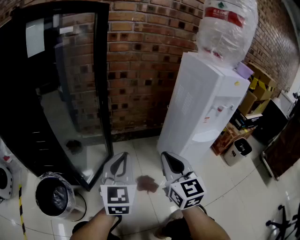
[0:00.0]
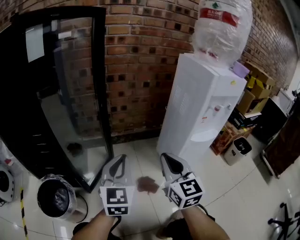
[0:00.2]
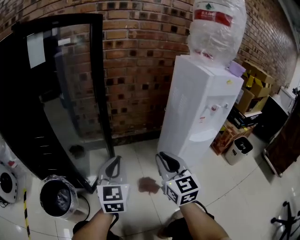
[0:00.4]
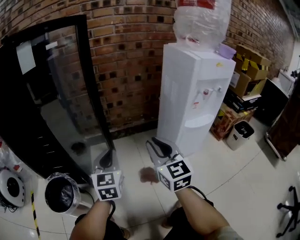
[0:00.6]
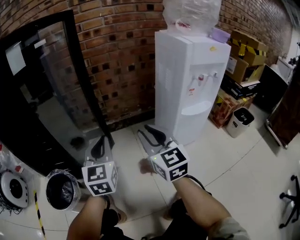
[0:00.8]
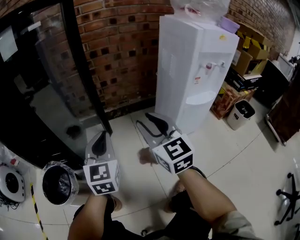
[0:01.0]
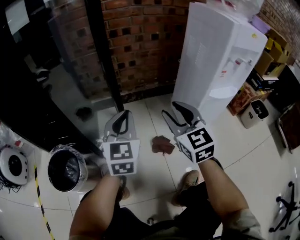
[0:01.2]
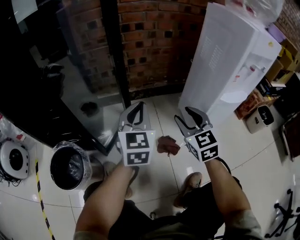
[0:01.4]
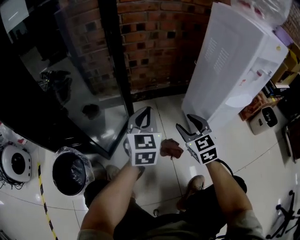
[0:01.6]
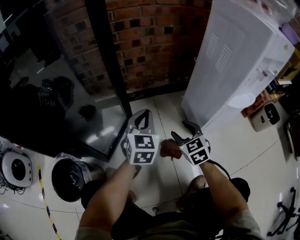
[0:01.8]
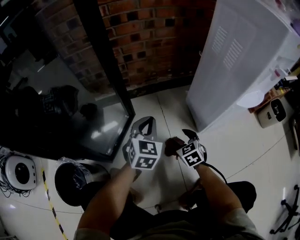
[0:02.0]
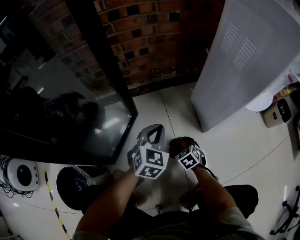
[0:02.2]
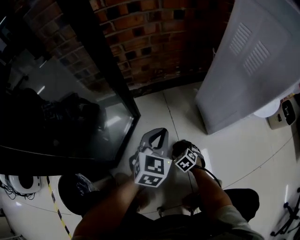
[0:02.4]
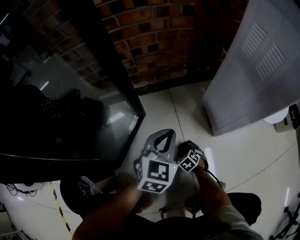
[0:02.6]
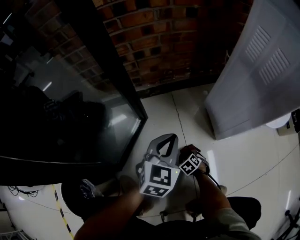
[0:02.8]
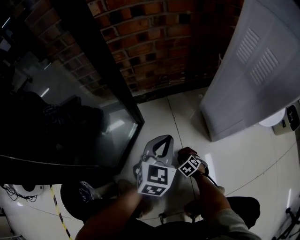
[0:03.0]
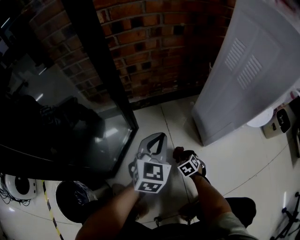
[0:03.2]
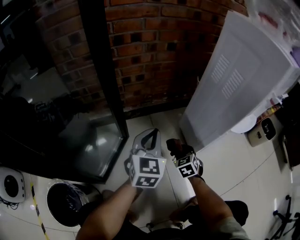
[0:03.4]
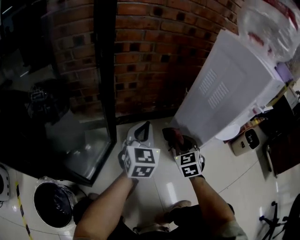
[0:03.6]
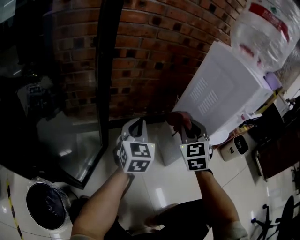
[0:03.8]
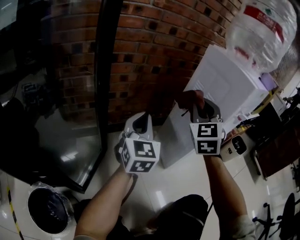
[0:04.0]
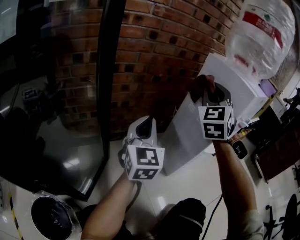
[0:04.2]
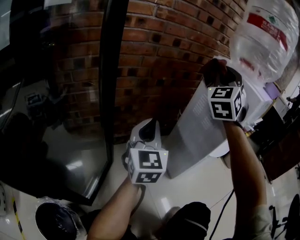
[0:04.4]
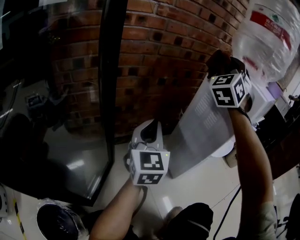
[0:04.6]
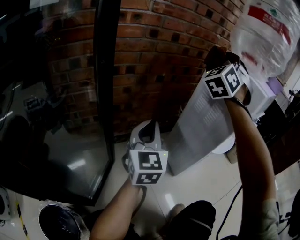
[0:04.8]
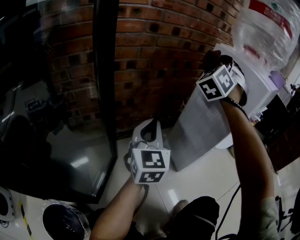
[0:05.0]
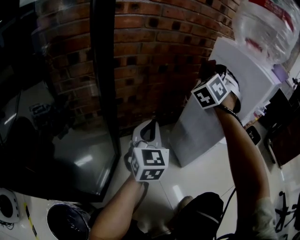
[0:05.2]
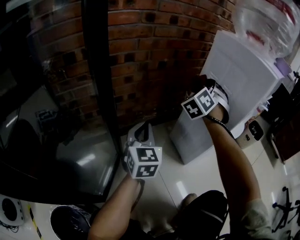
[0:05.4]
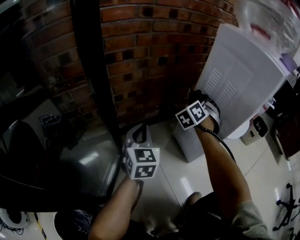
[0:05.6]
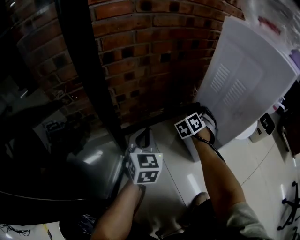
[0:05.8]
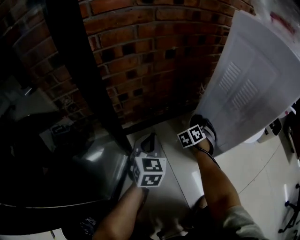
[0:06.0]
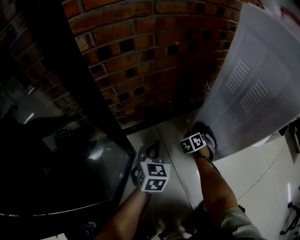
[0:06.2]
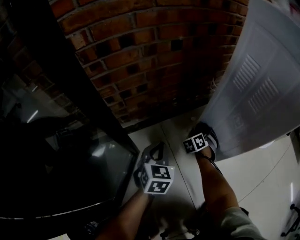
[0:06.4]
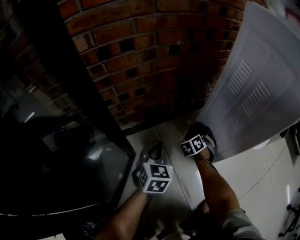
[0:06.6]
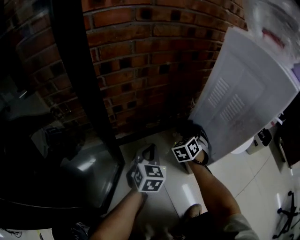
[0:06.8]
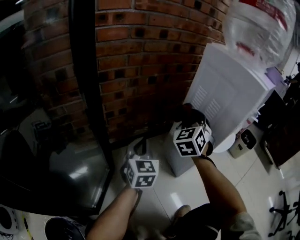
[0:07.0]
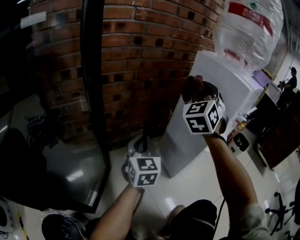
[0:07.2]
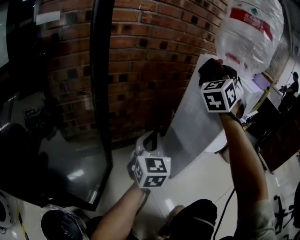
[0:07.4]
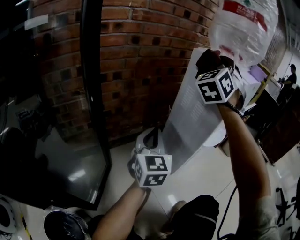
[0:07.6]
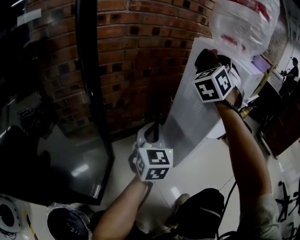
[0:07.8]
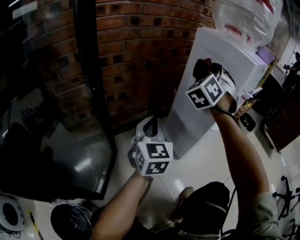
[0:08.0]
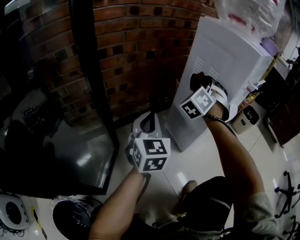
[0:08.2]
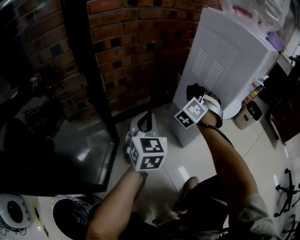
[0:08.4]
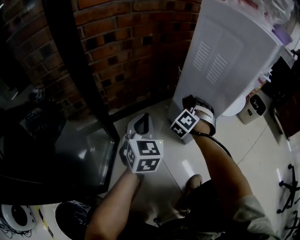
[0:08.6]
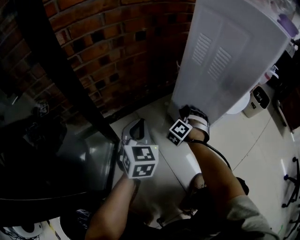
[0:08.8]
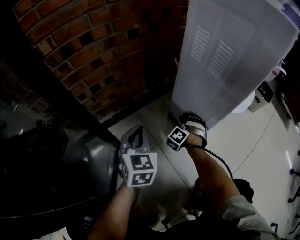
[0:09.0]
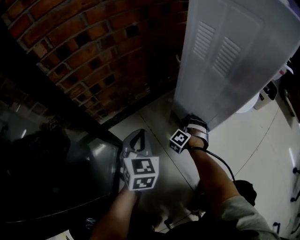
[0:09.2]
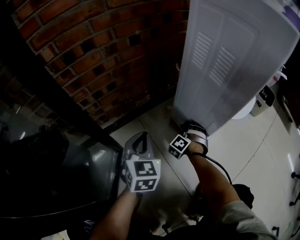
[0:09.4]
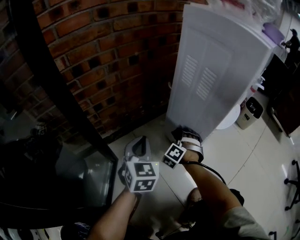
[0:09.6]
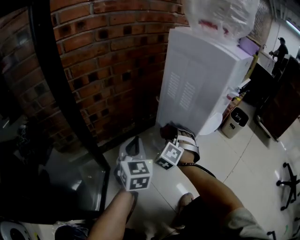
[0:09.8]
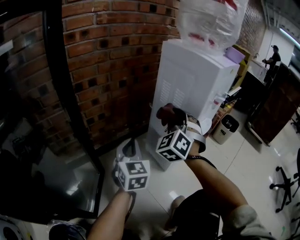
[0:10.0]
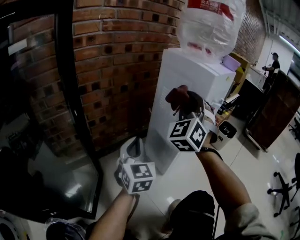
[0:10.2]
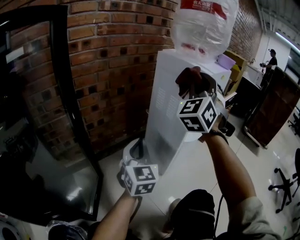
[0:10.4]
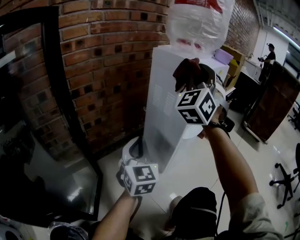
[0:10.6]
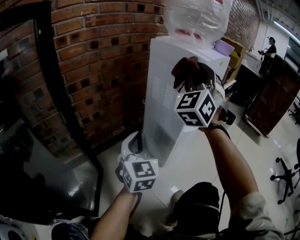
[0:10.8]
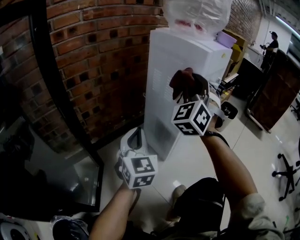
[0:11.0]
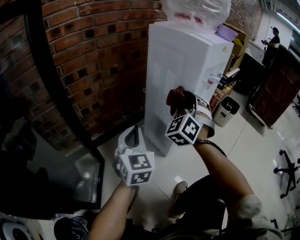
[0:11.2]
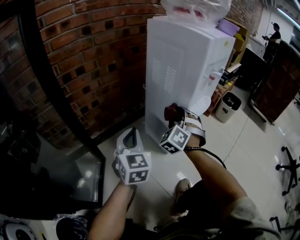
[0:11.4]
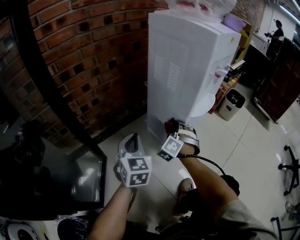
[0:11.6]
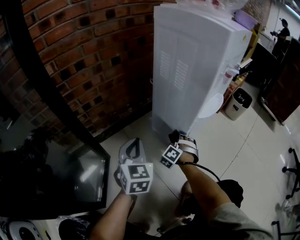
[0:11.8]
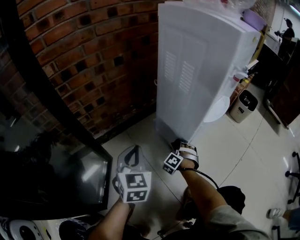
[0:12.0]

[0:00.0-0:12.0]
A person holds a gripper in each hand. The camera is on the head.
0:00.0 to 0:01.6: The right gripper shifts roughly 20 cm downward and forward, changes its angle by roughly 30 degrees, and opens up. The left gripper moves forward and downward, roughly 15 cm.
0:01.6 to 0:03.0: The left gripper travels downward by roughly 10 cm, and changes its angle by roughly 20 degrees, while the right gripper heads downward, covering some 40 cm, tilts its fingers roughly 50 degrees downward, and closes.
0:03.0 to 0:04.4: The right gripper goes some 80 cm upward, and tips its fingers upward by approximately 80 degrees; the left gripper heads upward, covering about 25 cm, and tips its fingers upward by approximately 30 degrees.
0:04.4 to 0:06.0: The left gripper is displaced downward by about 20 cm, and turns by some 30 degrees, while the right gripper heads downward, covering some 50 cm, and tips its fingers downward by roughly 50 degrees.
0:06.0 to 0:07.6: The right gripper shifts about 60 cm upward, and points its fingers some 50 degrees further upward; the left gripper heads upward and to the right, covering roughly 20 cm, and changes its angle by roughly 20 degrees.
0:07.6 to 0:09.0: The left gripper goes approximately 20 cm downward, and rotates some 20 degrees, while the right gripper heads downward, covering about 60 cm, and angles its fingers downward, by some 50 degrees.
0:09.0 to 0:10.4: The right gripper travels upward by roughly 60 cm, and tips its fingers upward by roughly 50 degrees. The left gripper shifts approximately 20 cm upward and to the right, and rotates approximately 20 degrees.
0:10.4 to 0:12.0: The left gripper goes some 15 cm downward. The right gripper goes roughly 60 cm downward, and angles its fingers downward, by approximately 50 degrees.

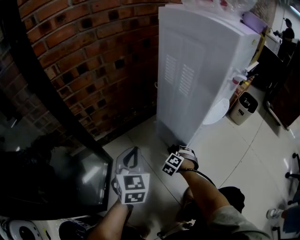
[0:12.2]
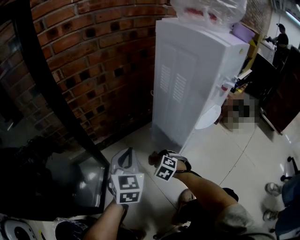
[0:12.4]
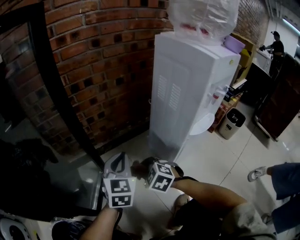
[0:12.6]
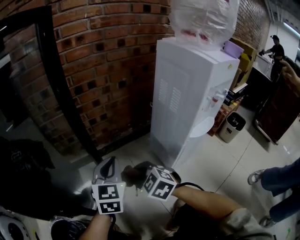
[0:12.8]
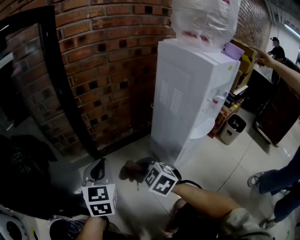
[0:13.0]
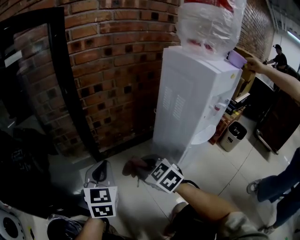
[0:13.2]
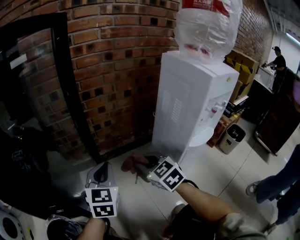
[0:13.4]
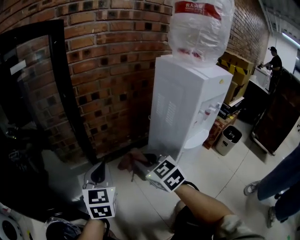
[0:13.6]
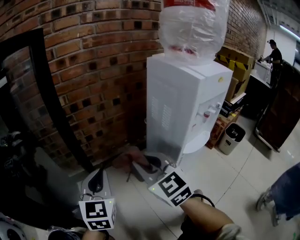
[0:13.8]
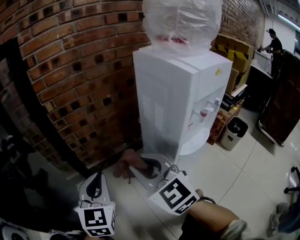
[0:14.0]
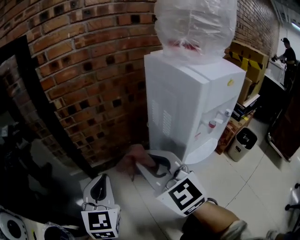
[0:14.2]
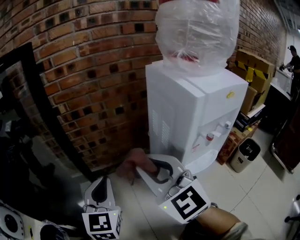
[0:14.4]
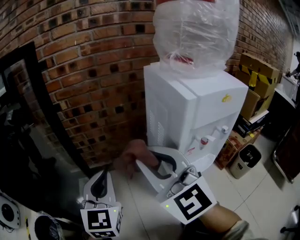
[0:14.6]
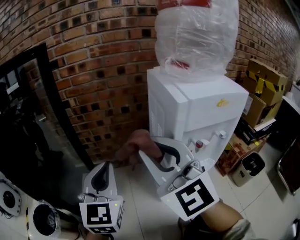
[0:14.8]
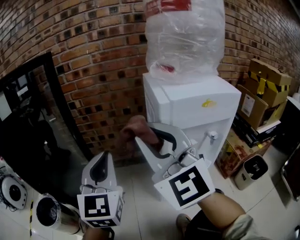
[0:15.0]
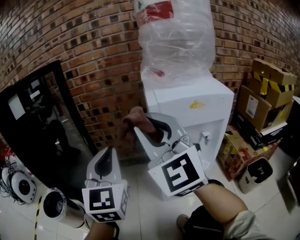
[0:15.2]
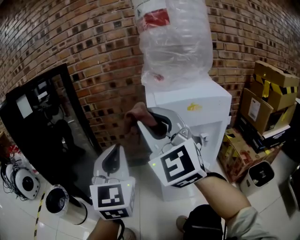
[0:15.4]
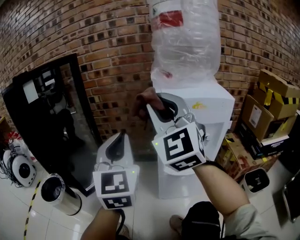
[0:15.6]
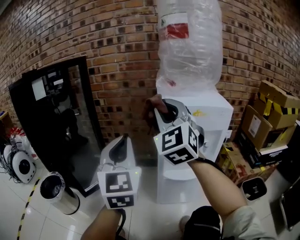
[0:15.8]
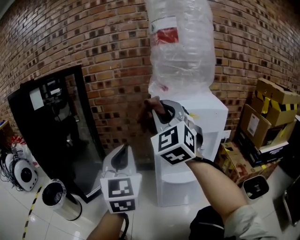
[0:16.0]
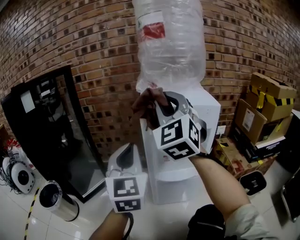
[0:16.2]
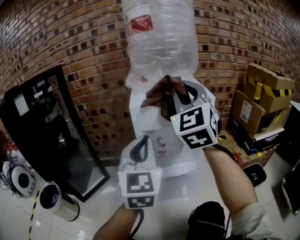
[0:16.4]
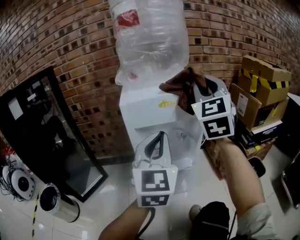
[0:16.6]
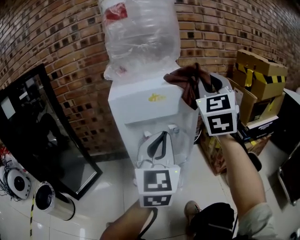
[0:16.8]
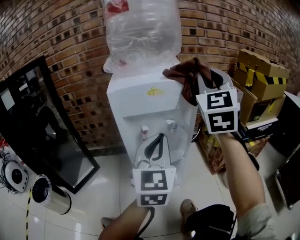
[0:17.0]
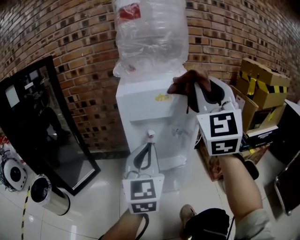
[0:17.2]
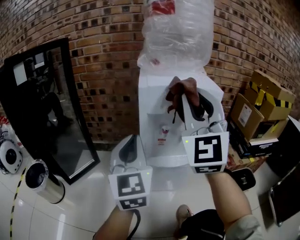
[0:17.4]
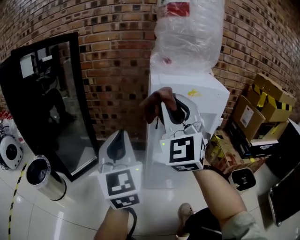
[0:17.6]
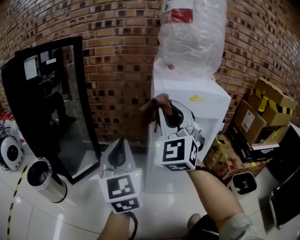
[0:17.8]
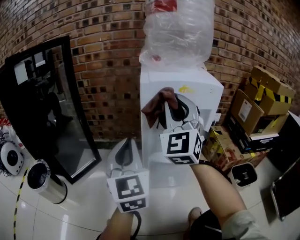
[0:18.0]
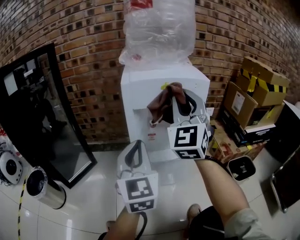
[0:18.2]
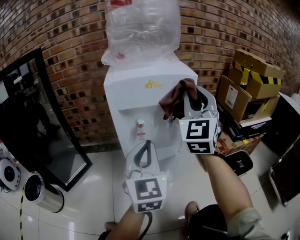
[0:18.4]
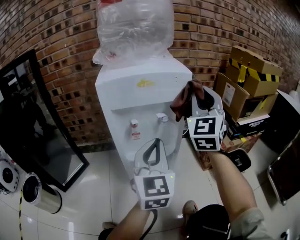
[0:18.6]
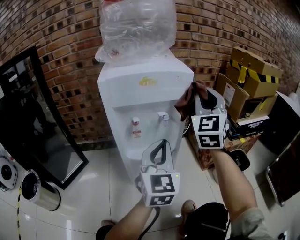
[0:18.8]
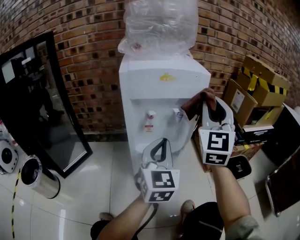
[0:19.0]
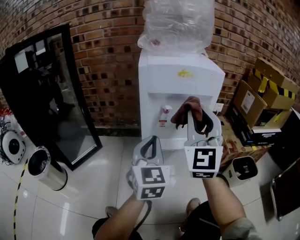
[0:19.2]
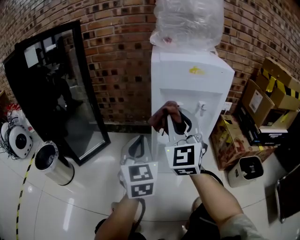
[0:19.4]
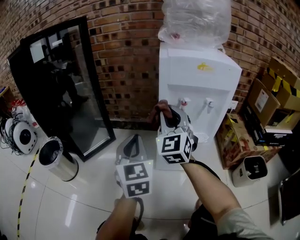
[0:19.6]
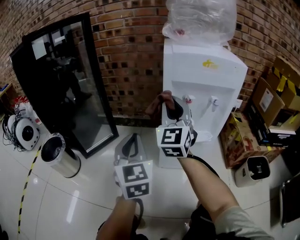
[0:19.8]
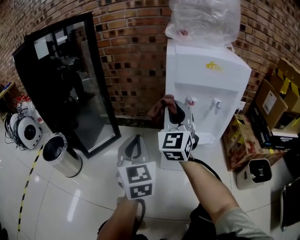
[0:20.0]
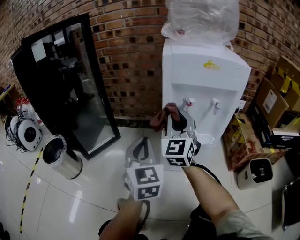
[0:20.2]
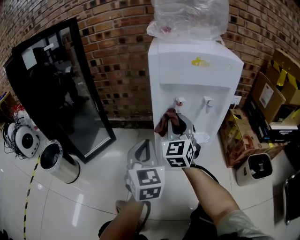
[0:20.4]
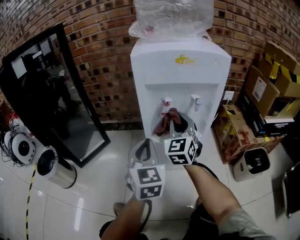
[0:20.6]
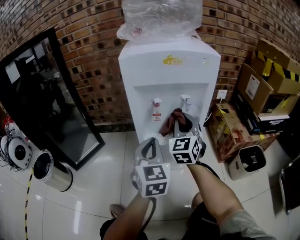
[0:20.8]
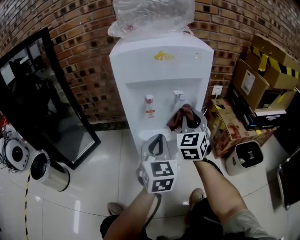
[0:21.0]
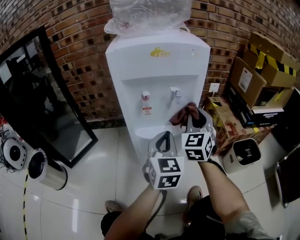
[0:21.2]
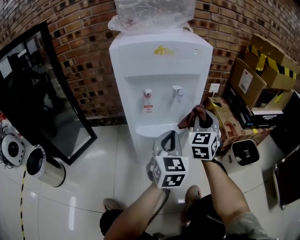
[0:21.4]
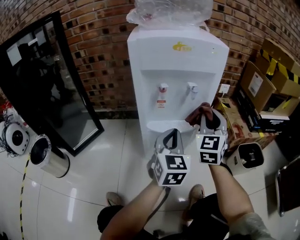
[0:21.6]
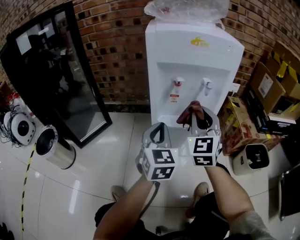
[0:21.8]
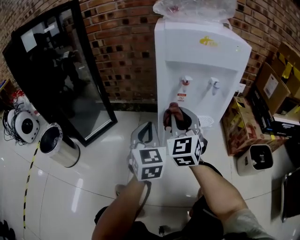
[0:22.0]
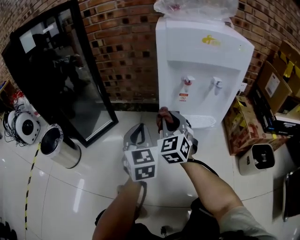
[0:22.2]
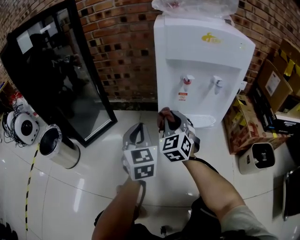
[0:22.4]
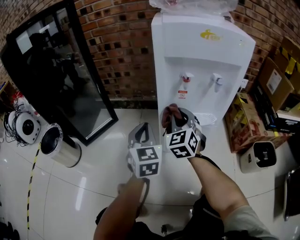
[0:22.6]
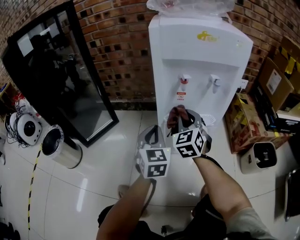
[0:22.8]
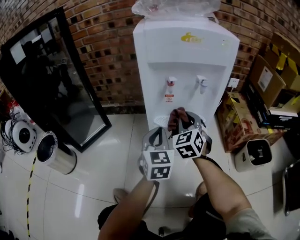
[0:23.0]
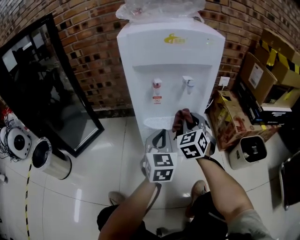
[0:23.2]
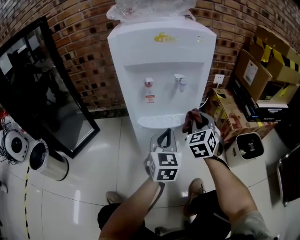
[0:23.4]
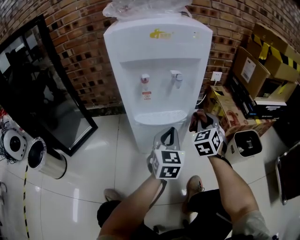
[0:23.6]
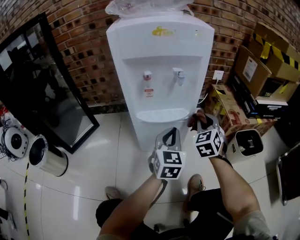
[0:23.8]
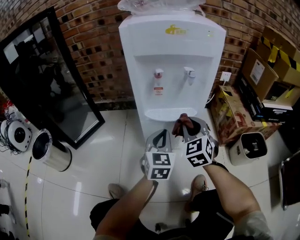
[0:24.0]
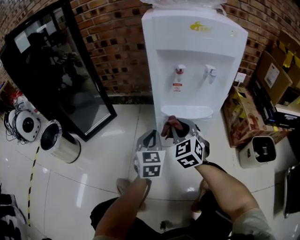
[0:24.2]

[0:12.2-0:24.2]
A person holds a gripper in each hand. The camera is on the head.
0:12.2 to 0:13.8: The right gripper moves upward, about 40 cm, and tilts its fingers approximately 40 degrees upward; the left gripper goes roughly 15 cm upward.
0:13.8 to 0:15.2: The right gripper travels upward and to the right by approximately 30 cm, and swivels roughly 40 degrees. The left gripper travels to the right, upward and backward by some 30 cm, and rotates some 30 degrees.
0:15.2 to 0:16.6: The right gripper ends up roughly 30 cm from where it was, and turns by some 30 degrees. Meanwhile the left gripper shifts by about 25 cm.
0:18.2 to 0:19.8: The left gripper shifts by some 15 cm, while the right gripper moves some 20 cm.
0:19.8 to 0:21.2: The grippers both shift to the right by roughly 25 cm. The right gripper rotates roughly 30 degrees. The left gripper turns by about 20 degrees.
0:21.2 to 0:22.6: The left gripper moves about 20 cm, while the right gripper shifts by some 20 cm, and rotates about 20 degrees.
0:22.6 to 0:24.2: The left gripper goes about 5 cm downward, and moves roughly 25 cm to the right and comes back; the right gripper shifts some 5 cm backward, and goes to the right and returns, about 25 cm each way.
